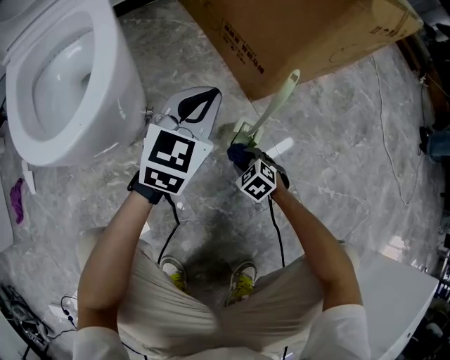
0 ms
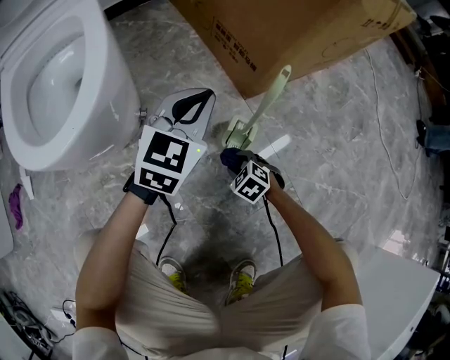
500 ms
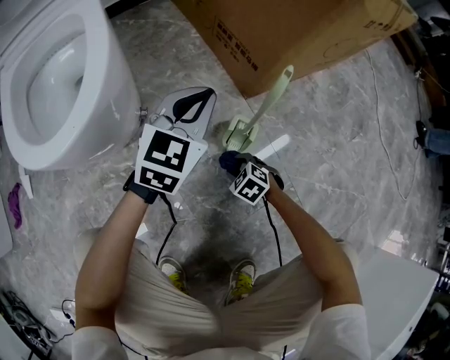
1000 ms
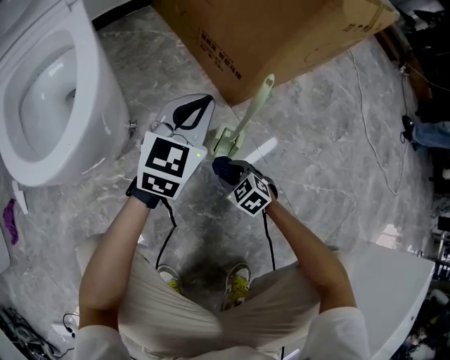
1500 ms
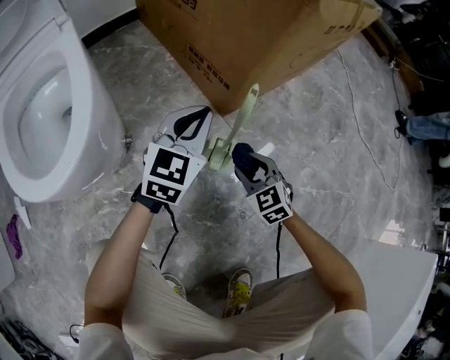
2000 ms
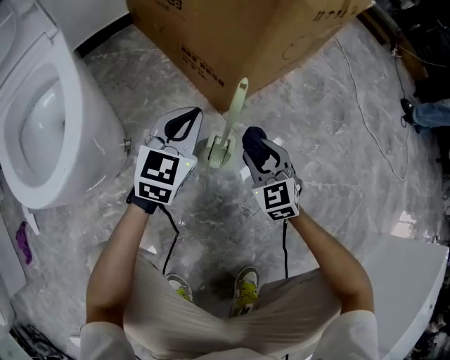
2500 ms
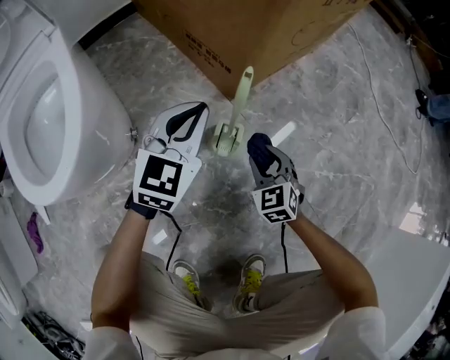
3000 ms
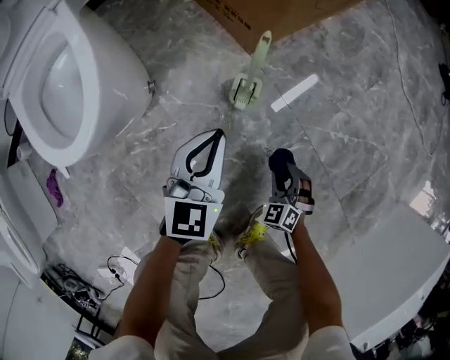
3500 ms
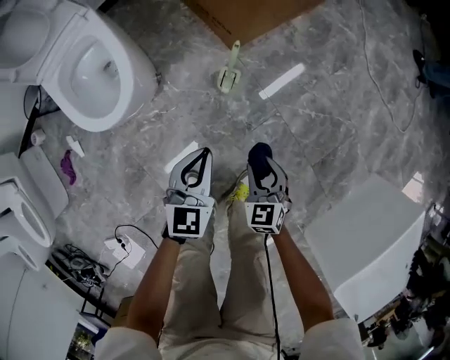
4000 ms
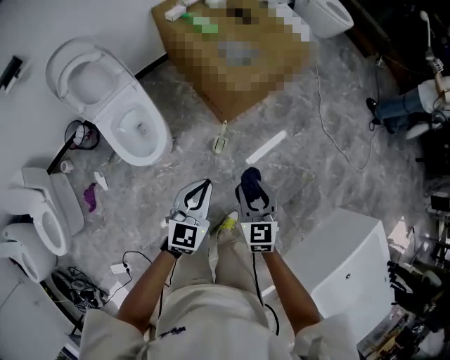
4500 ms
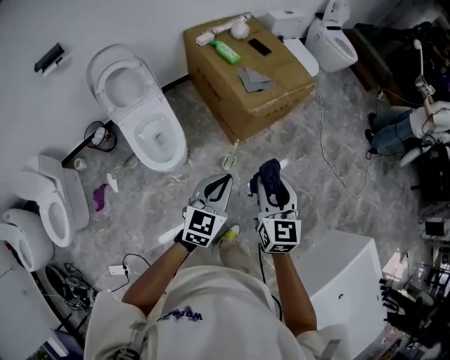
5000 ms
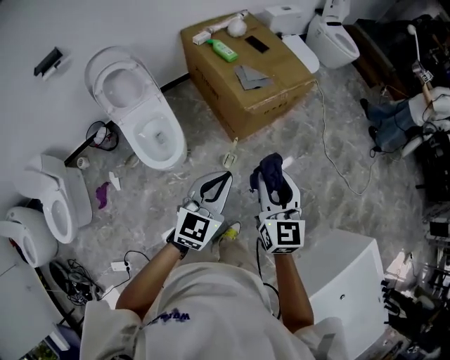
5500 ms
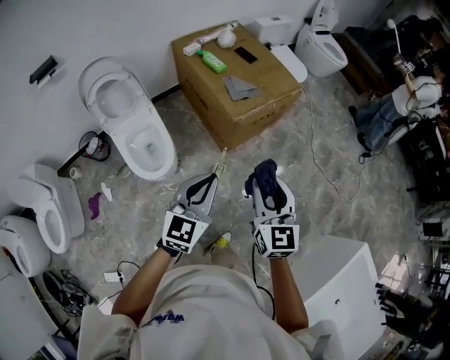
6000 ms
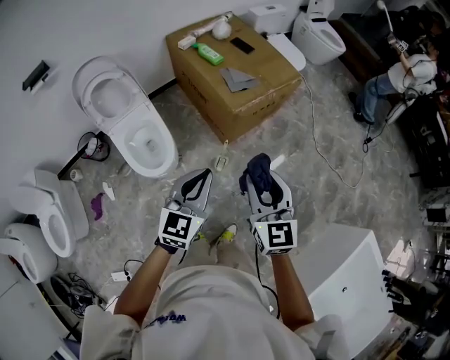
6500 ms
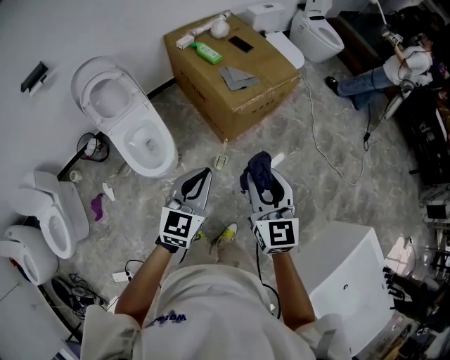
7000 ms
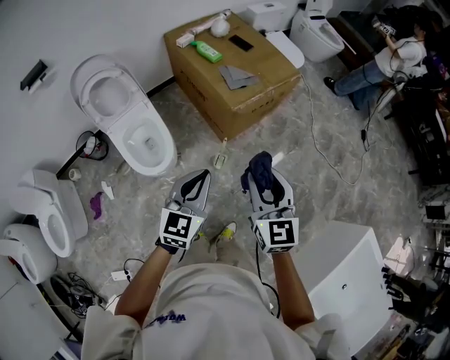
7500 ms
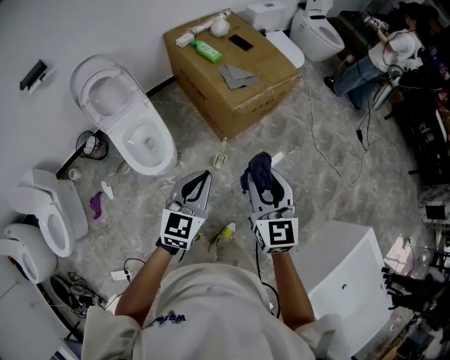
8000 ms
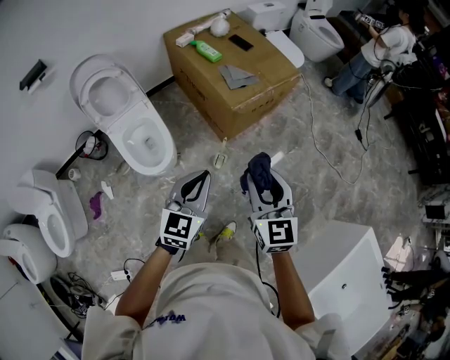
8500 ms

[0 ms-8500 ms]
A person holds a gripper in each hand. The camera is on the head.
0 ms to 2000 ms: The right gripper travels upward by roughly 15 cm, and turns by some 30 degrees.
2000 ms to 4000 ms: The right gripper goes up and down, some 30 cm each way, reversing 2 times, and rotates some 20 degrees. The left gripper goes about 30 cm backward and upward.
4000 ms to 6500 ms: The grippers both shift upward by some 60 cm. The right gripper tilts its fingers approximately 30 degrees upward.
6500 ms to 8500 ms: The grippers move only a little.

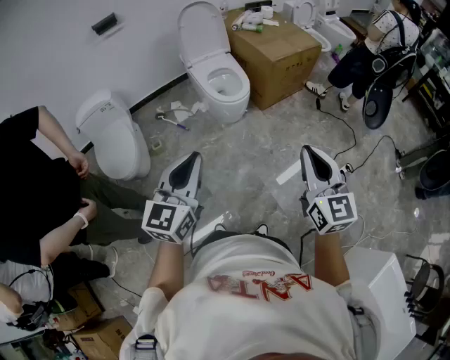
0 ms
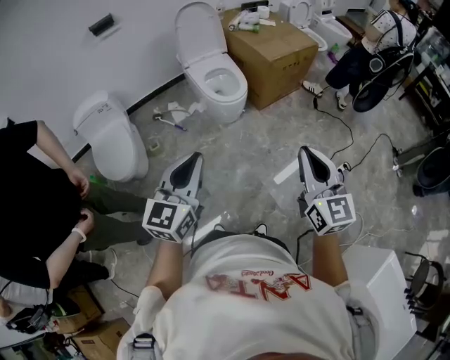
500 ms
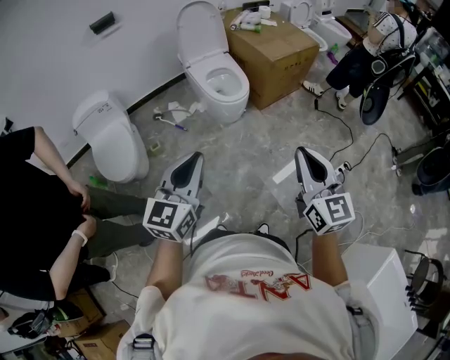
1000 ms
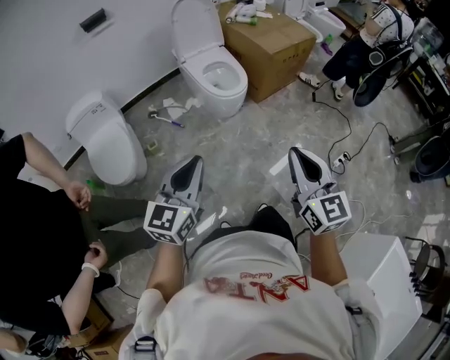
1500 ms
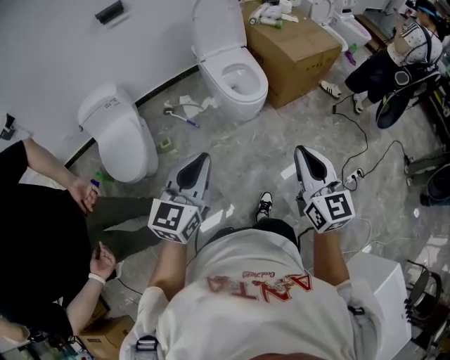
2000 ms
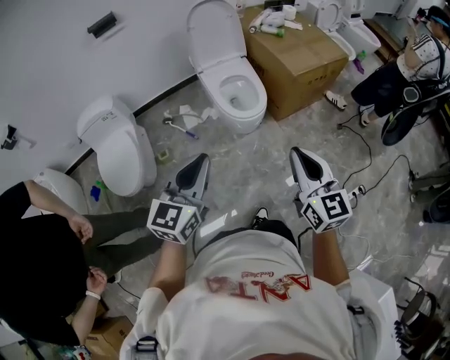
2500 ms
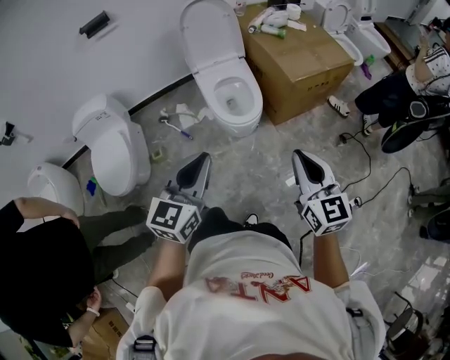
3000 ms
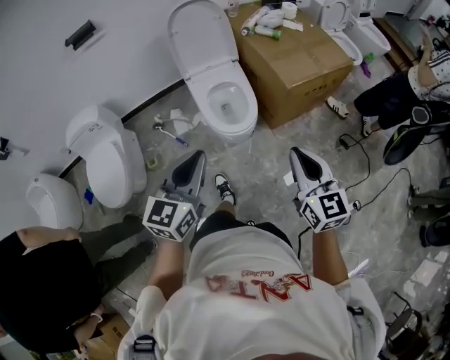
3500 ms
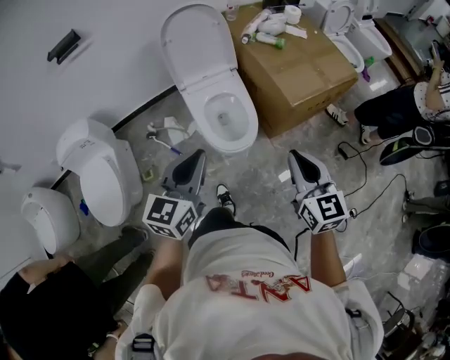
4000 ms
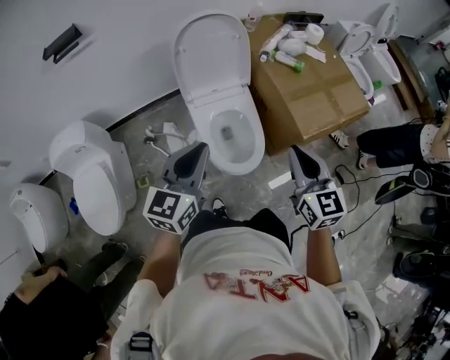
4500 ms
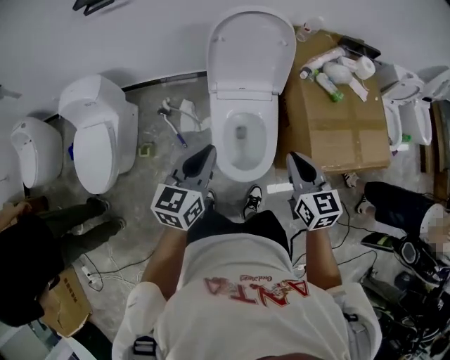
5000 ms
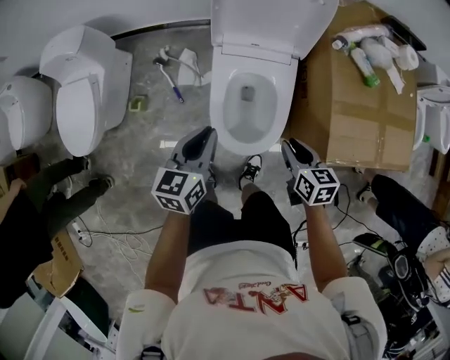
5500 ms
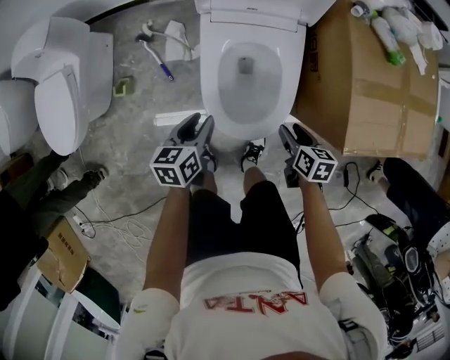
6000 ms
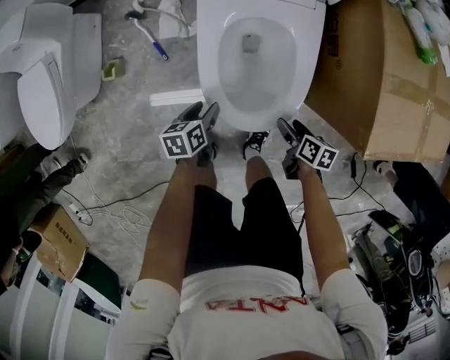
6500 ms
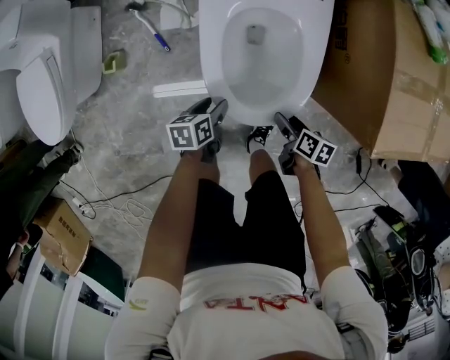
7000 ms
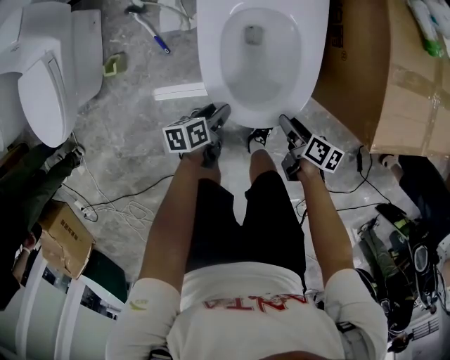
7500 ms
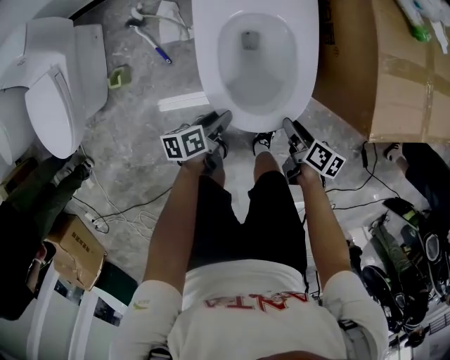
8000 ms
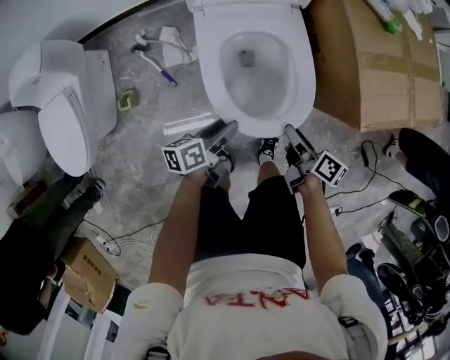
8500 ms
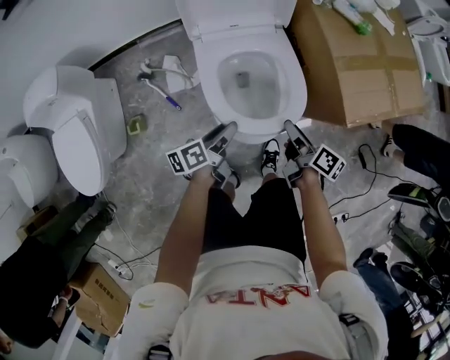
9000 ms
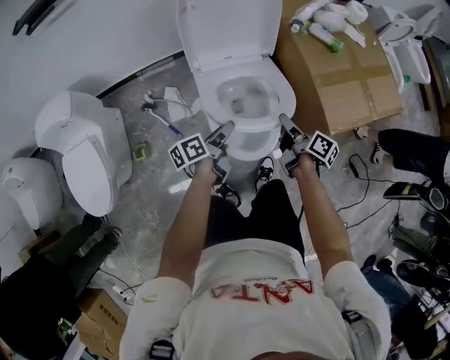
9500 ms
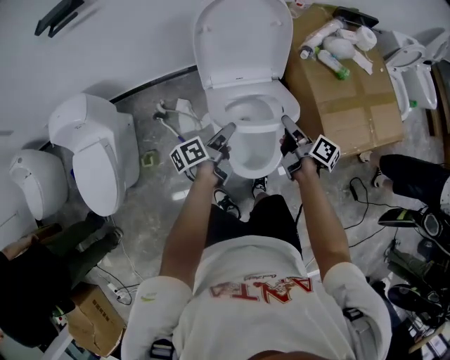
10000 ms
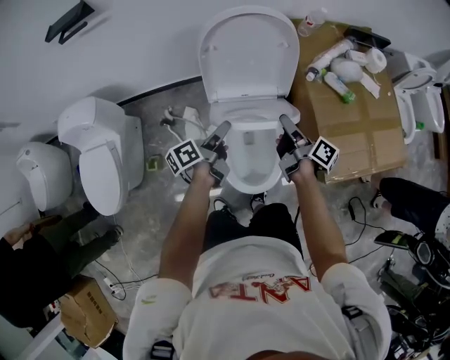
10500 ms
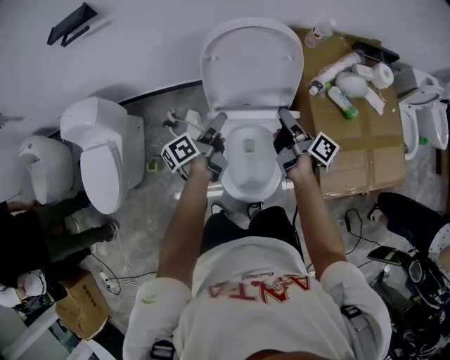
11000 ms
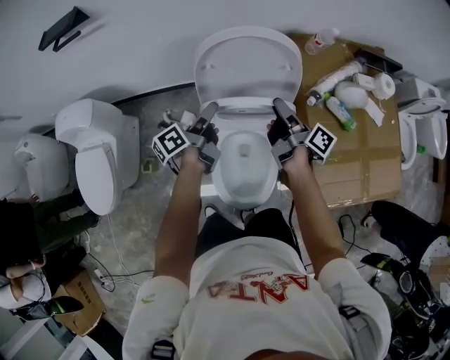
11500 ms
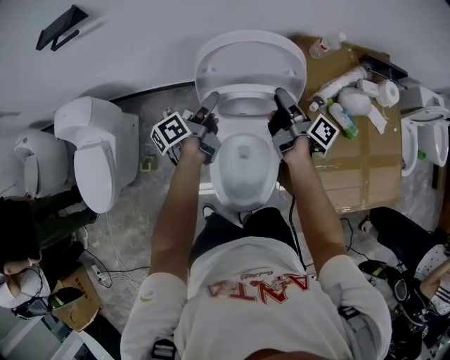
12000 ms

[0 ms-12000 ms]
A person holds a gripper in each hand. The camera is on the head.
0 ms to 2000 ms: The right gripper moves to the left and forward, about 15 cm; the left gripper goes approximately 10 cm forward and to the left.
2000 ms to 4000 ms: The two grippers travel together, forward, about 40 cm.
4000 ms to 6000 ms: Both grippers travel together downward, about 40 cm. The right gripper points its fingers roughly 40 degrees further downward, and opens up, while the left gripper rotates some 50 degrees, and opens up.
6000 ms to 8000 ms: The right gripper goes some 10 cm downward and backward, and turns by roughly 30 degrees, while the left gripper goes approximately 15 cm downward and backward, and swivels roughly 30 degrees.
8000 ms to 10000 ms: The grippers both shift upward and forward by about 30 cm. The left gripper swivels some 20 degrees; the right gripper tips its fingers upward by about 30 degrees.
10000 ms to 12000 ms: The grippers both shift forward by roughly 25 cm.

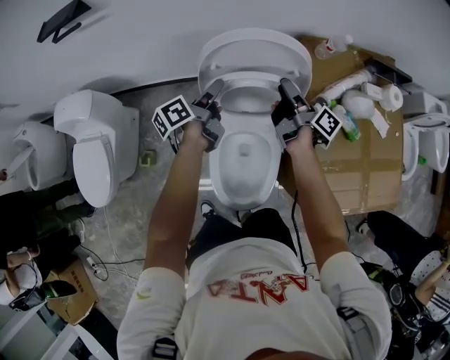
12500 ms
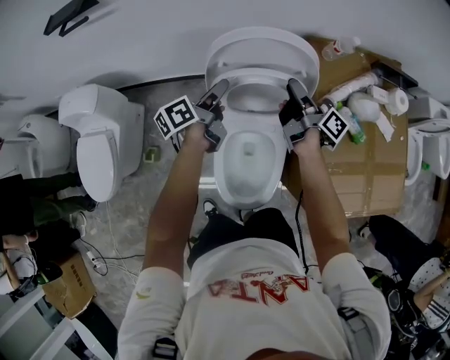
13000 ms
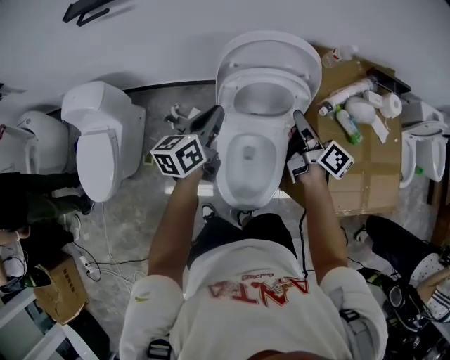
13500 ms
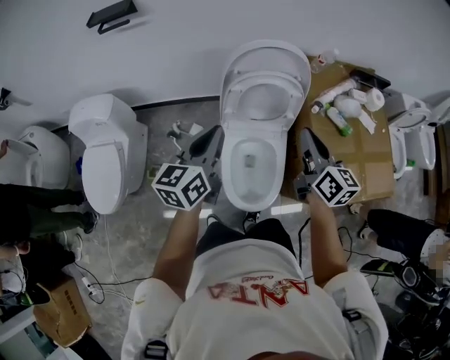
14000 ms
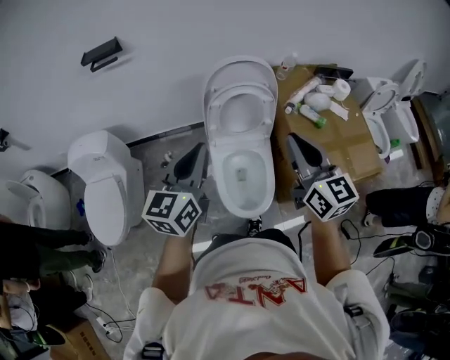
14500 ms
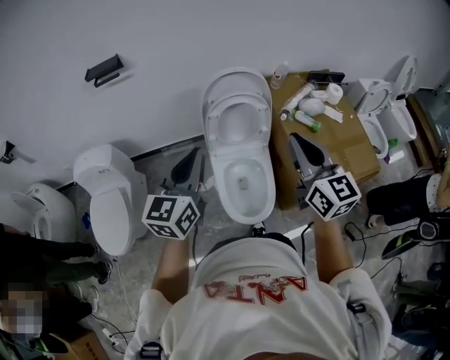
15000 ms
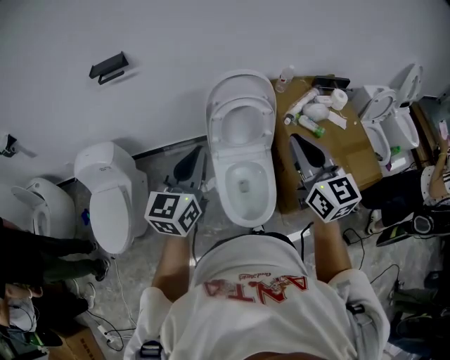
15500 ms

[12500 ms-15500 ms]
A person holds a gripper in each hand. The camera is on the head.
12500 ms to 14000 ms: Both grippers travel together backward and upward, some 25 cm. The left gripper rotates around the line of its fingers by some 40 degrees, clockwise from behind, and closes. The right gripper rolls counterclockwise, seen from behind, by approximately 60 degrees, and closes up.
14000 ms to 15500 ms: The two grippers go some 15 cm upward and backward. The left gripper swivels approximately 20 degrees; the right gripper changes its angle by approximately 30 degrees.

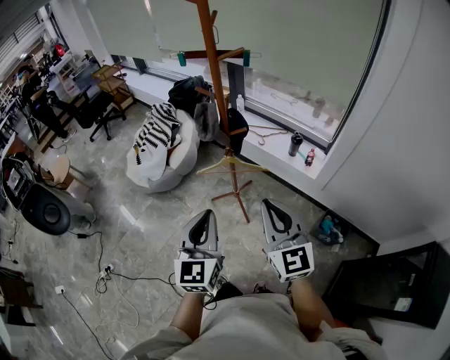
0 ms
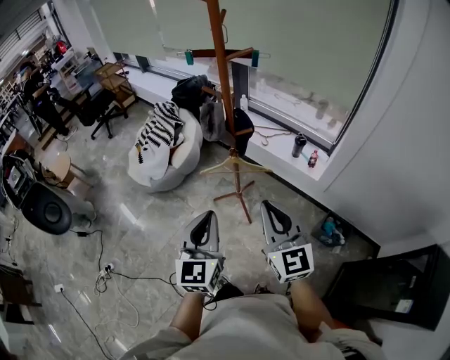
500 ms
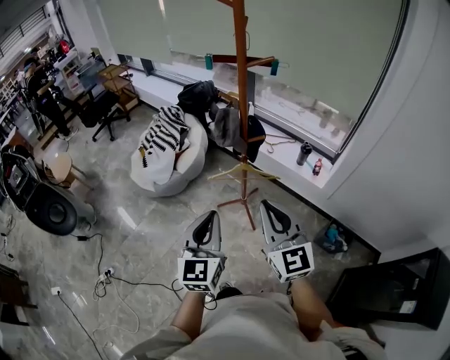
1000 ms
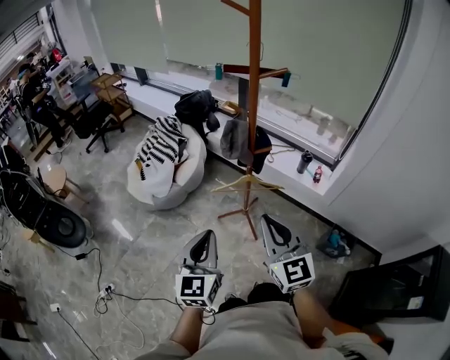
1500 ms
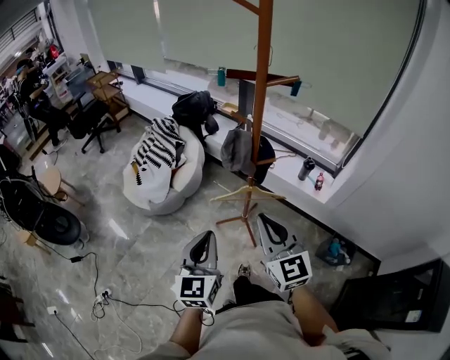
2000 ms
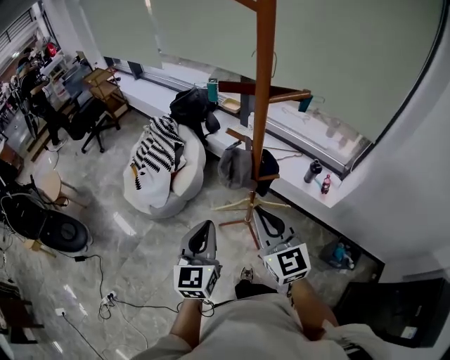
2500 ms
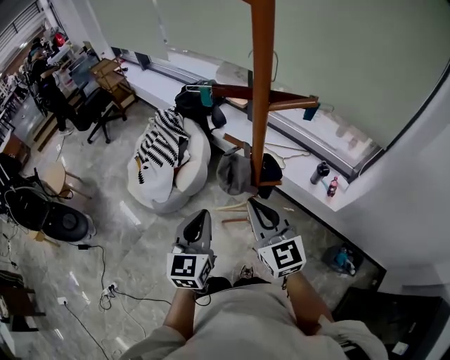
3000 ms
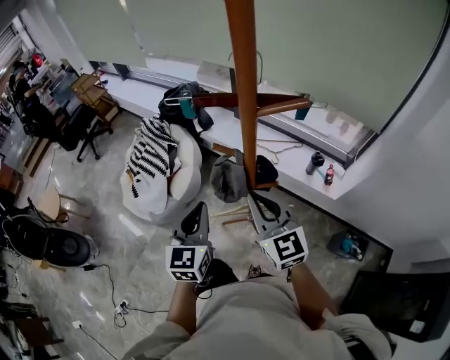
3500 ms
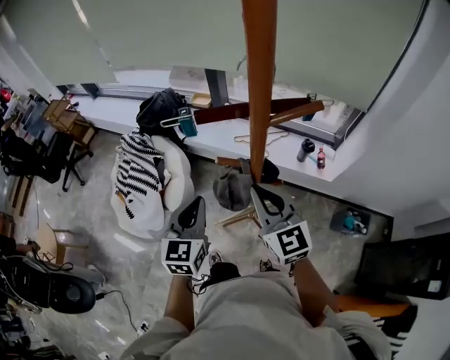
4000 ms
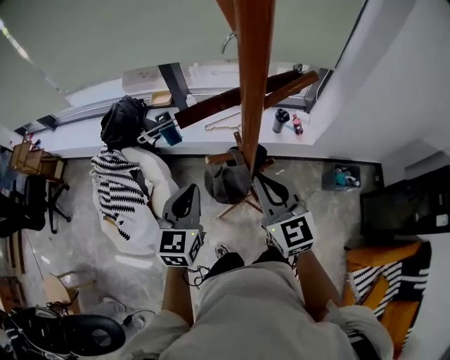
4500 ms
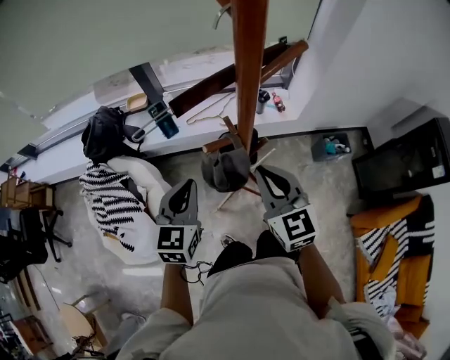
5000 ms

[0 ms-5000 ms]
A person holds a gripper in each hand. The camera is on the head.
0 ms to 2500 ms: Both grippers move forward and to the left, roughly 30 cm.
2500 ms to 5000 ms: The right gripper shifts by roughly 15 cm, and changes its angle by roughly 40 degrees. Meanwhile the left gripper moves about 25 cm, and rotates some 50 degrees.
